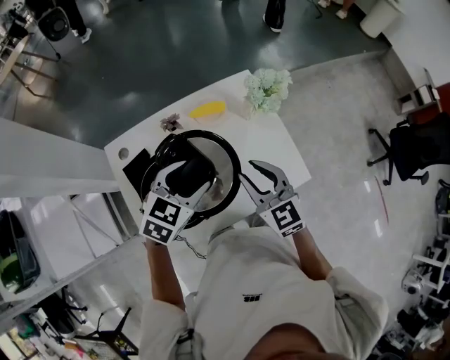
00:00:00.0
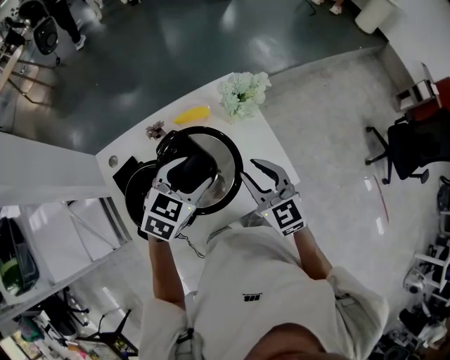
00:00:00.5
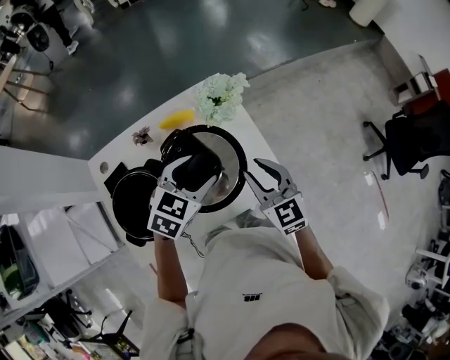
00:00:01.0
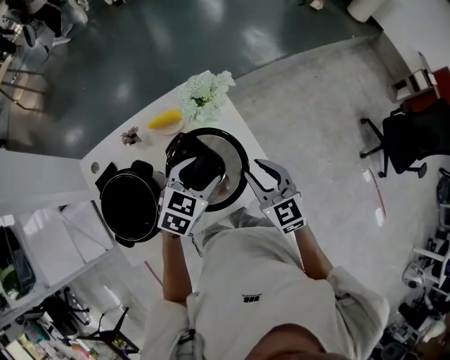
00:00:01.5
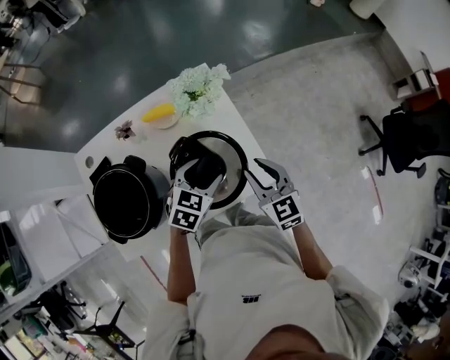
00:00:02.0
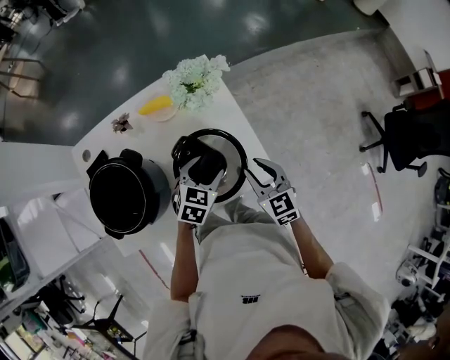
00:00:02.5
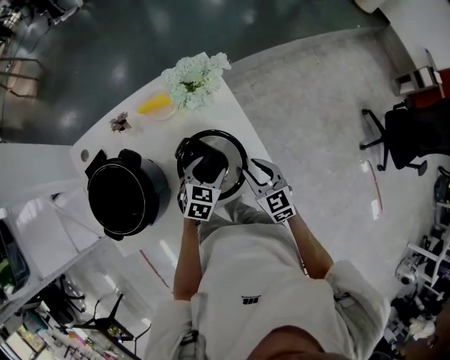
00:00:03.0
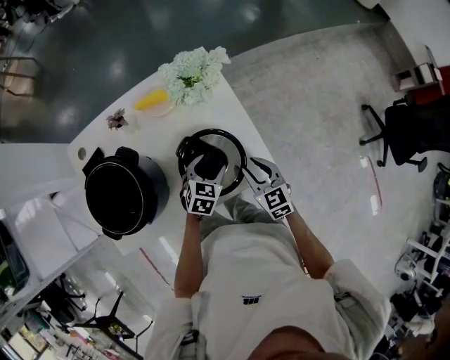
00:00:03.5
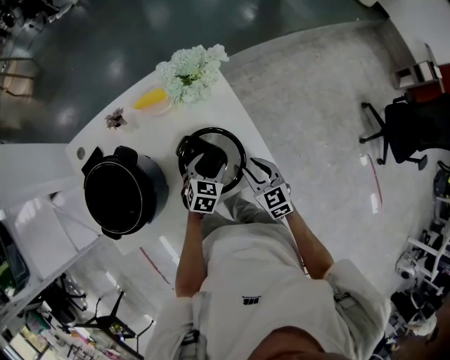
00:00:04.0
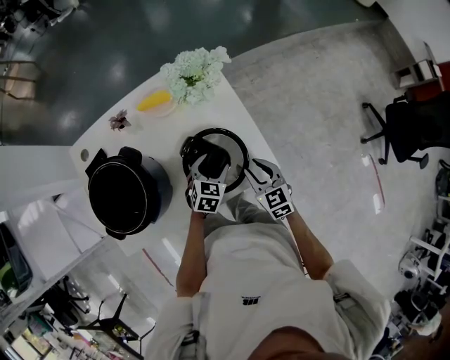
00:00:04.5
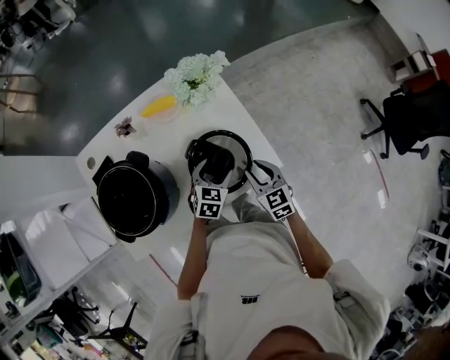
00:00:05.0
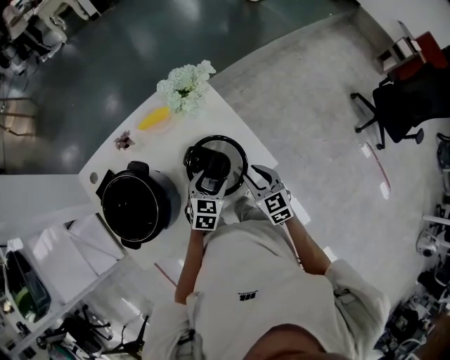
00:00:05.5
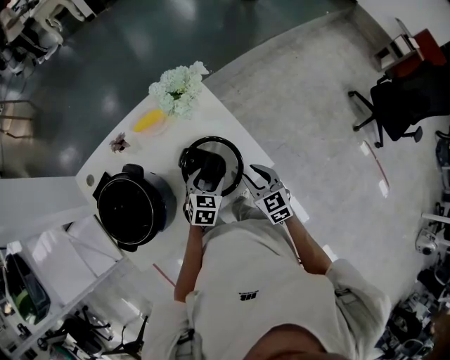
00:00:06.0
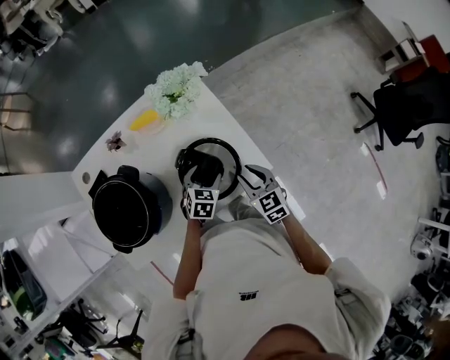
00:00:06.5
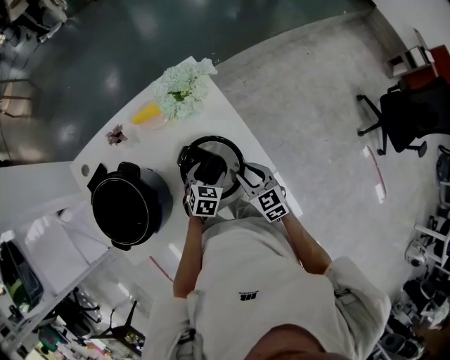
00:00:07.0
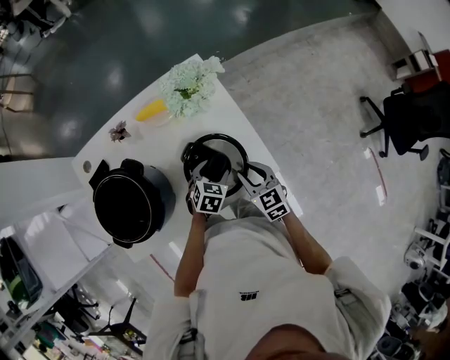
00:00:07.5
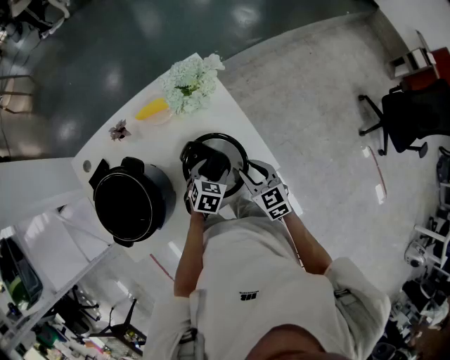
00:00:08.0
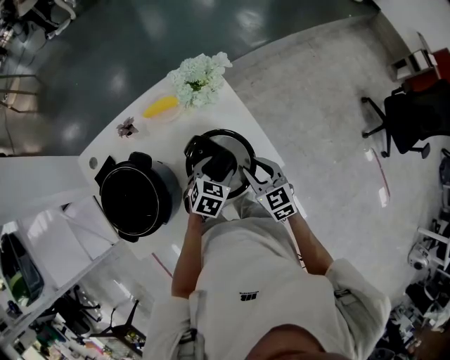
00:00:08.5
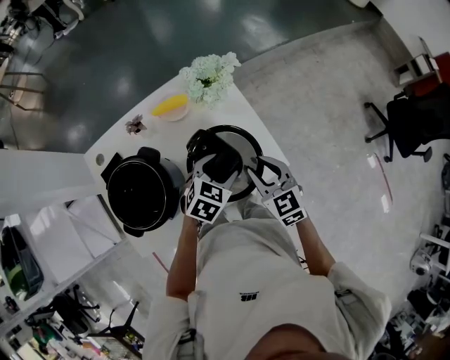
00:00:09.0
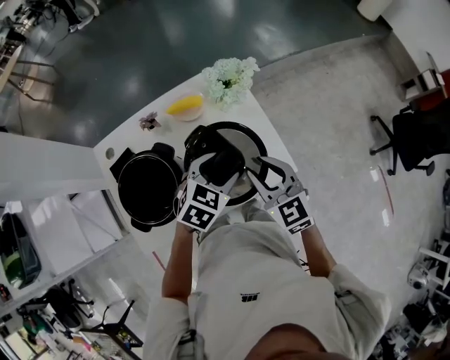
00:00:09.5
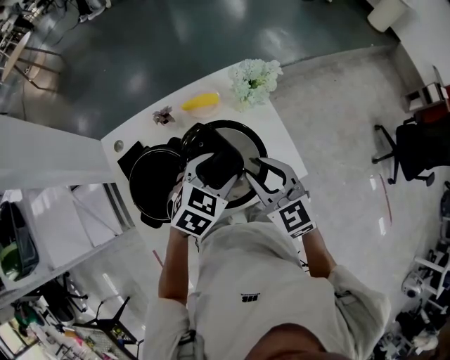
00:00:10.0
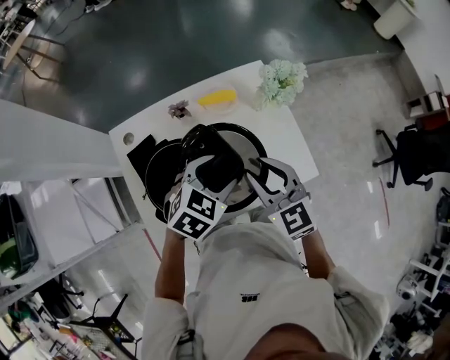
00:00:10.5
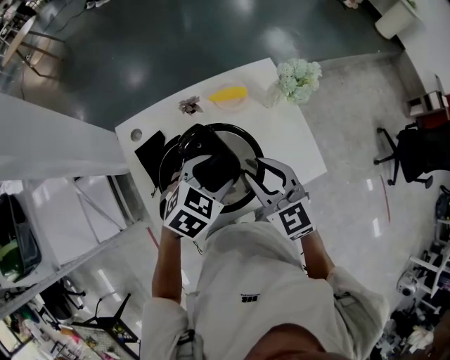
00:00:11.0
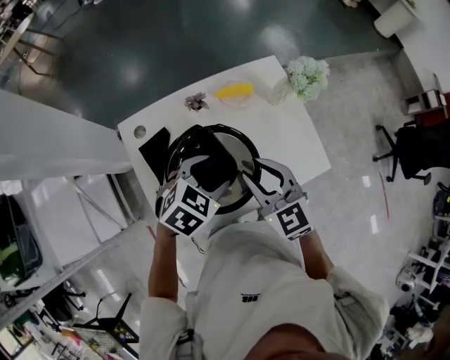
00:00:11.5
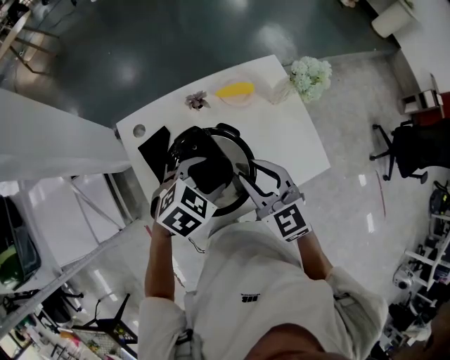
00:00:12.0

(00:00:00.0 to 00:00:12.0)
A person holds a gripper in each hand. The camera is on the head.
00:00:00.0 - 00:00:02.0: The right gripper moves to the right, roughly 20 cm. The left gripper heads to the right and downward, covering approximately 25 cm.
00:00:02.0 - 00:00:04.0: Both grippers travel together downward, roughly 15 cm.
00:00:04.0 - 00:00:06.0: The right gripper moves approximately 5 cm. The left gripper changes place by some 5 cm.
00:00:06.0 - 00:00:08.0: There are only small adjustments of the grippers.
00:00:08.0 - 00:00:10.0: Both grippers travel together upward and to the left, approximately 25 cm.
00:00:10.0 - 00:00:12.0: Both grippers travel together to the left, some 20 cm.

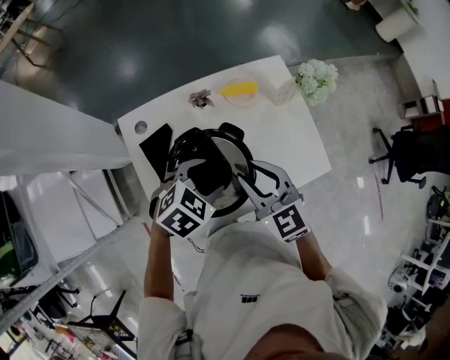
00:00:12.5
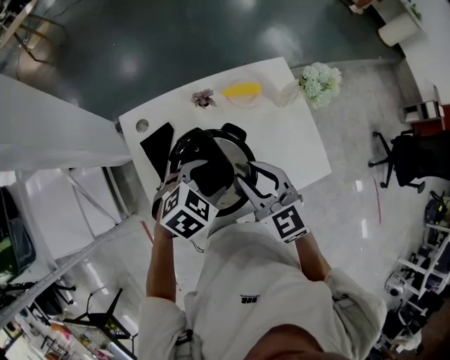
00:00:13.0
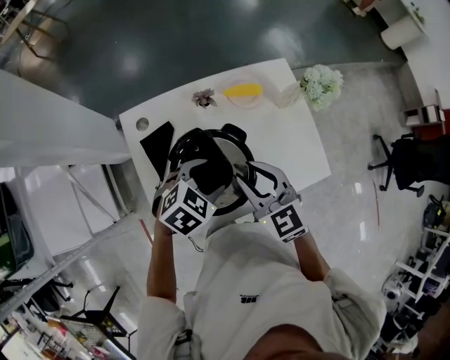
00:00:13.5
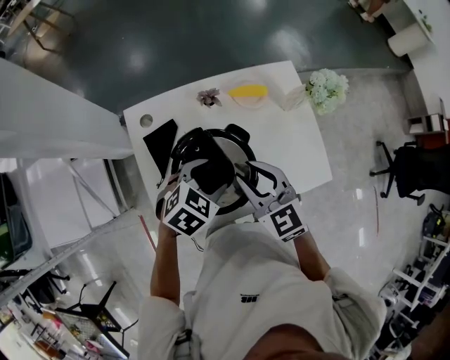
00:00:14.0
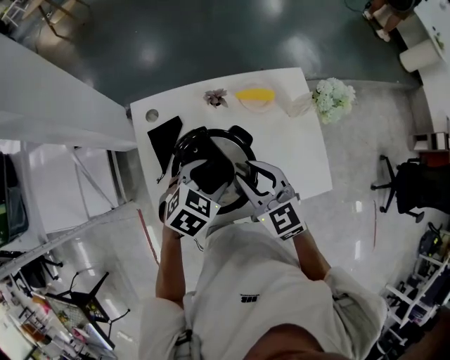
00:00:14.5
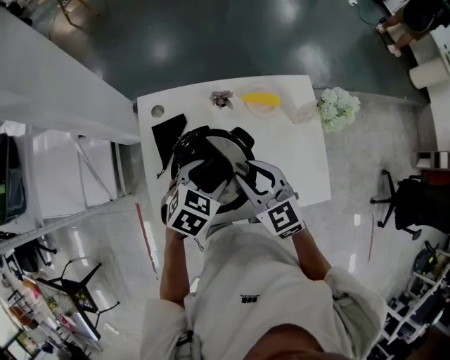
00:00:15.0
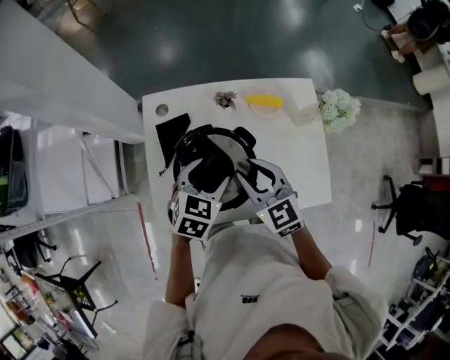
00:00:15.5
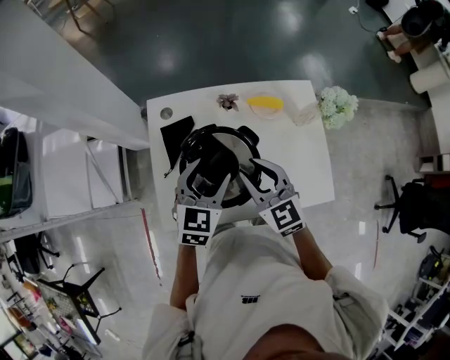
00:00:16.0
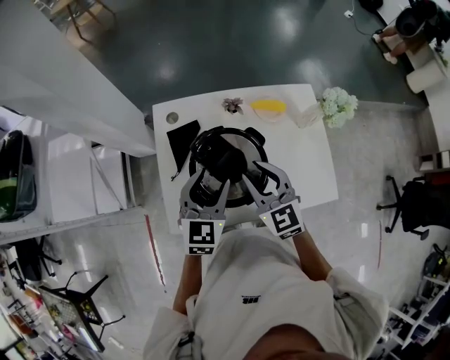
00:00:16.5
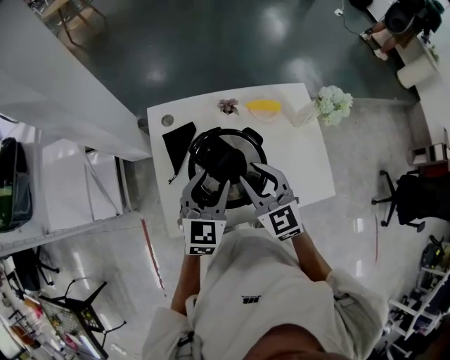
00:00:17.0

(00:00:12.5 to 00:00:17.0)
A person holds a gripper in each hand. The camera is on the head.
00:00:12.5 - 00:00:14.5: The grippers move only a little.
00:00:14.5 - 00:00:17.0: The right gripper ends up roughly 5 cm from where it was; the left gripper travels upward and to the left by some 10 cm, and rotates some 40 degrees.

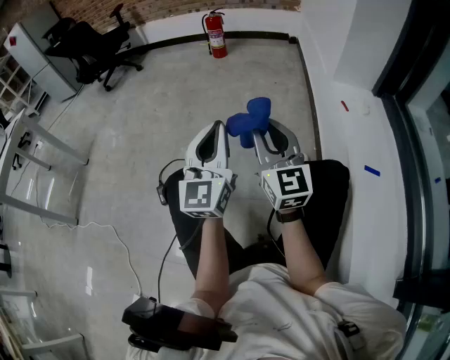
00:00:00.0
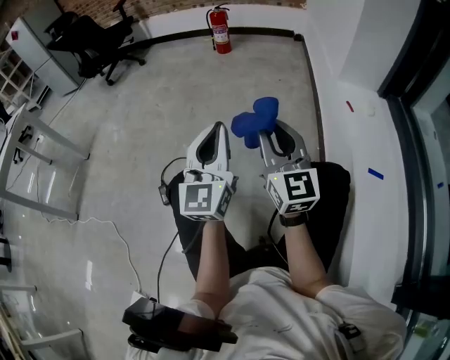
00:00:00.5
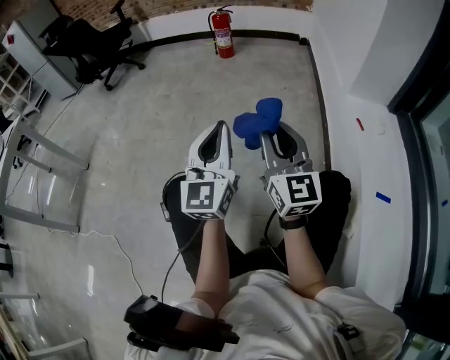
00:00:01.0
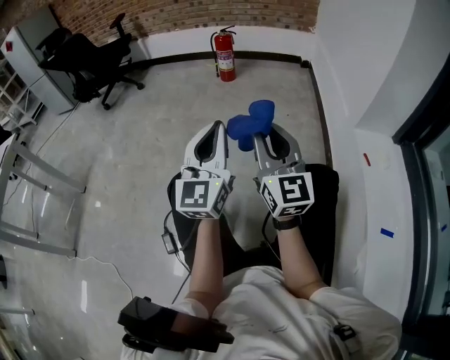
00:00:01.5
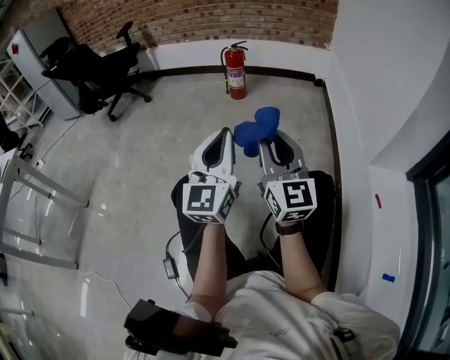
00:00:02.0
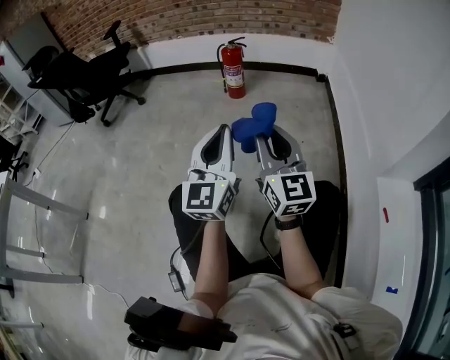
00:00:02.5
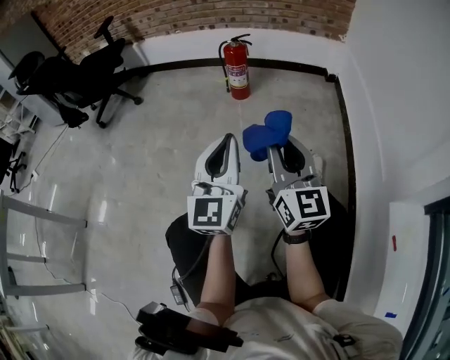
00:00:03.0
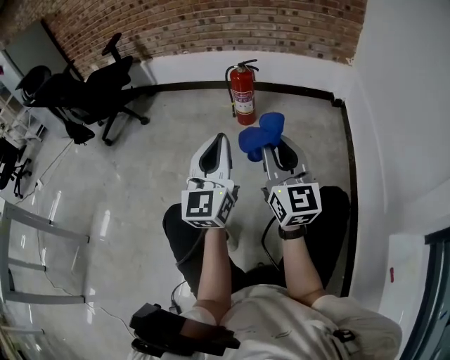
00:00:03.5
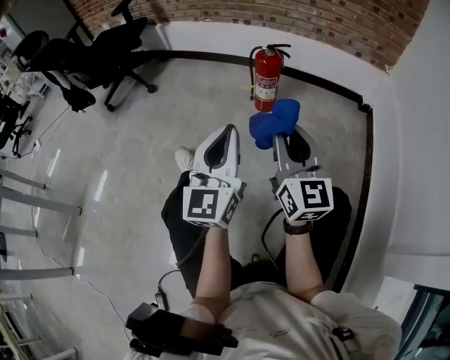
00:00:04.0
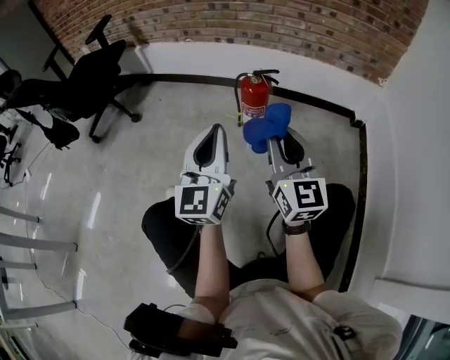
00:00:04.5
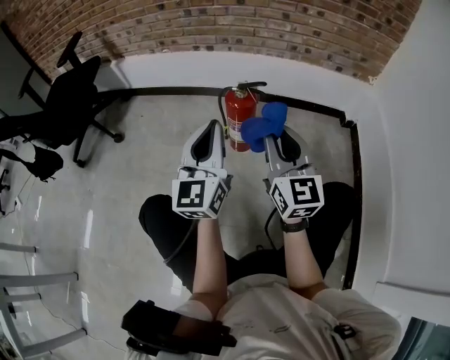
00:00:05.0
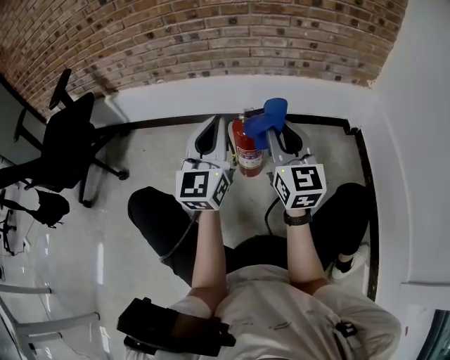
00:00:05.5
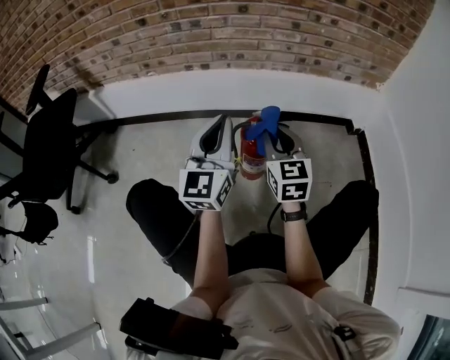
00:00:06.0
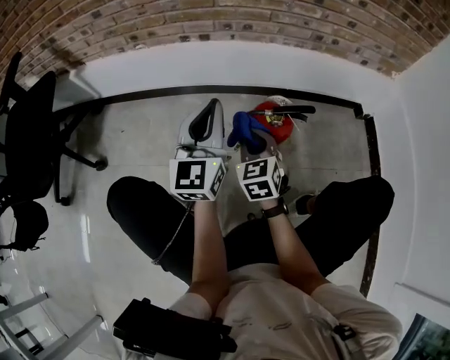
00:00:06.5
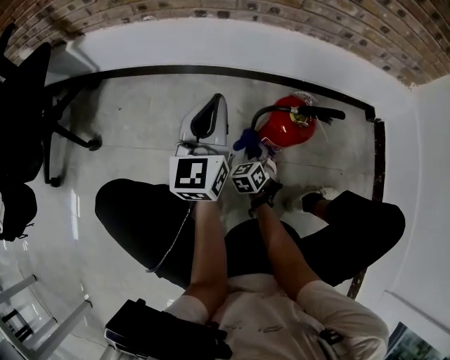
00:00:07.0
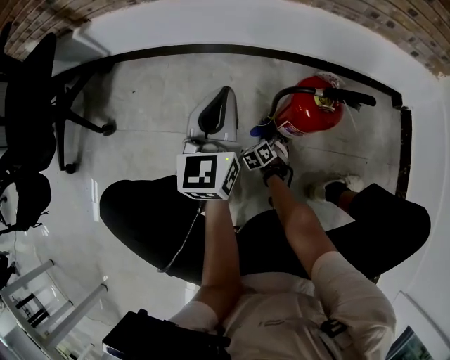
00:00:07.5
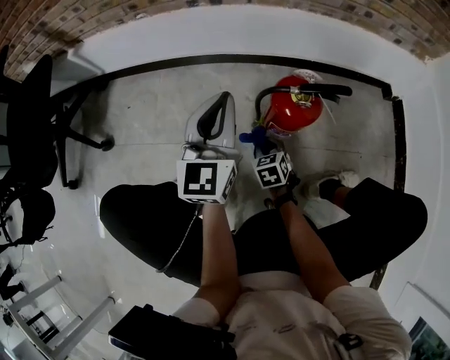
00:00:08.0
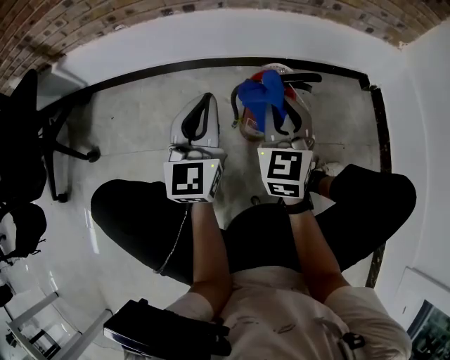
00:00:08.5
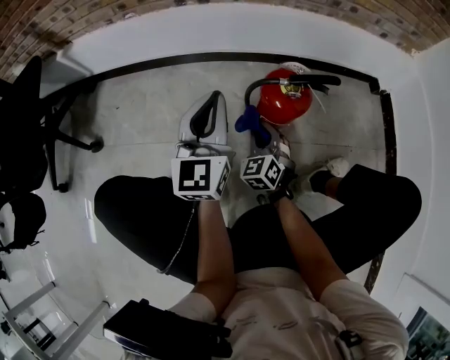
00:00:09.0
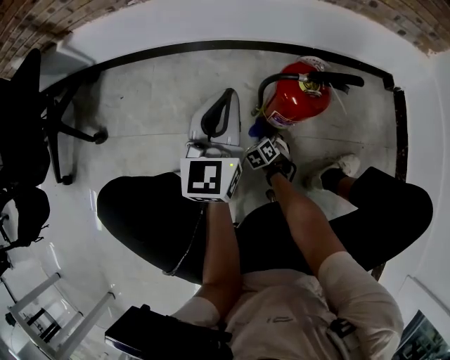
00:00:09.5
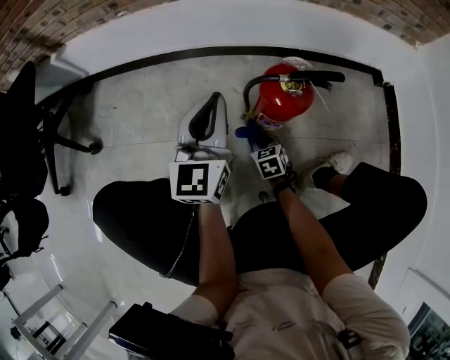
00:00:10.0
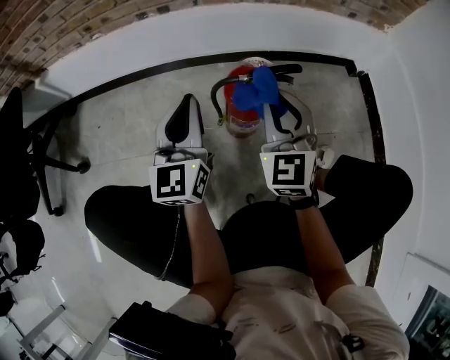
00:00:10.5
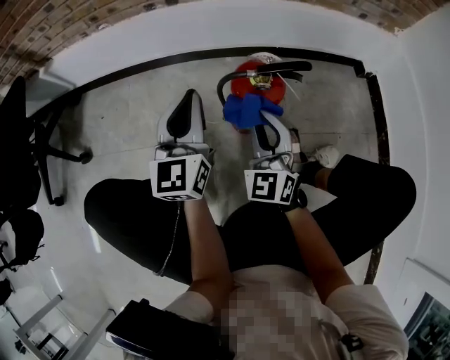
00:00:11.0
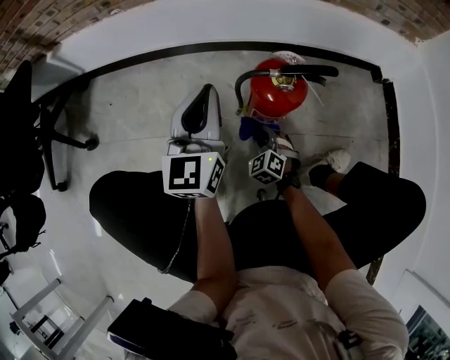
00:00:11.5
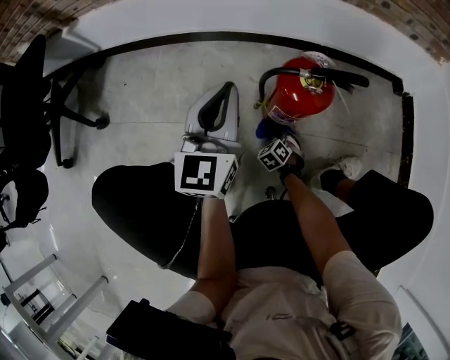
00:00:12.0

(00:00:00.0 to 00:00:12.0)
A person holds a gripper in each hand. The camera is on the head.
00:00:00.0 - 00:00:02.0: The grippers both shift forward by roughly 35 cm.
00:00:02.0 - 00:00:04.0: Both grippers move forward, about 40 cm.
00:00:04.0 - 00:00:06.0: The two grippers travel together, forward, some 50 cm. The right gripper rotates some 30 degrees.
00:00:06.0 - 00:00:08.0: The right gripper heads downward, covering roughly 35 cm, and tilts its fingers approximately 40 degrees downward; the left gripper heads downward, to the left and forward, covering roughly 15 cm.
00:00:08.0 - 00:00:10.0: The right gripper swings up and down, some 40 cm each way, with 2 reversals.
00:00:10.0 - 00:00:12.0: The right gripper travels upward and back again, roughly 35 cm each way, and rotates about 30 degrees.
